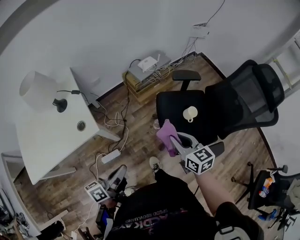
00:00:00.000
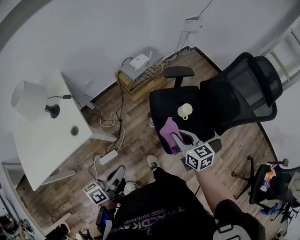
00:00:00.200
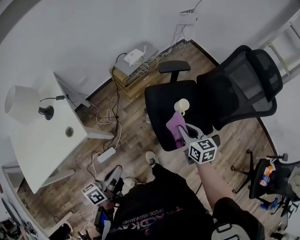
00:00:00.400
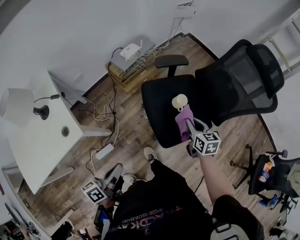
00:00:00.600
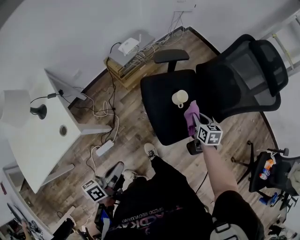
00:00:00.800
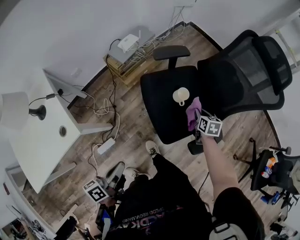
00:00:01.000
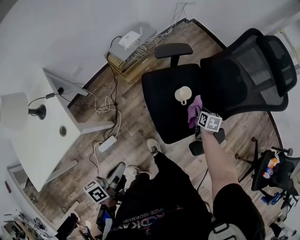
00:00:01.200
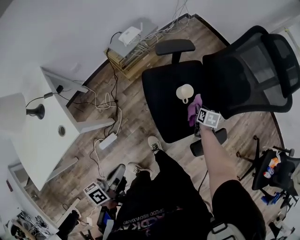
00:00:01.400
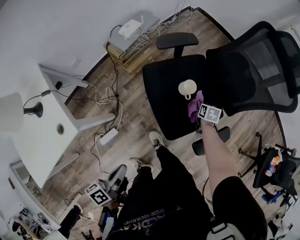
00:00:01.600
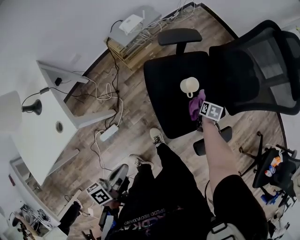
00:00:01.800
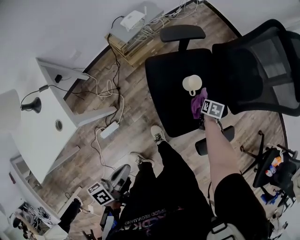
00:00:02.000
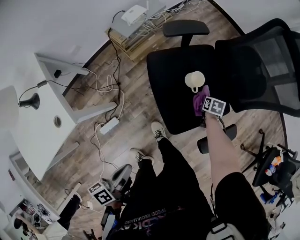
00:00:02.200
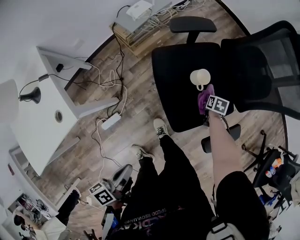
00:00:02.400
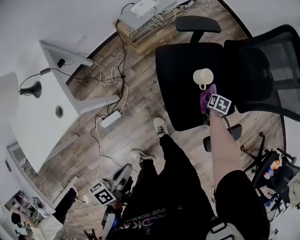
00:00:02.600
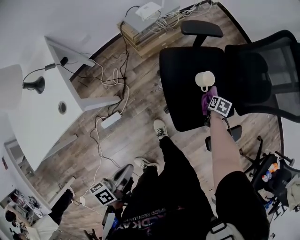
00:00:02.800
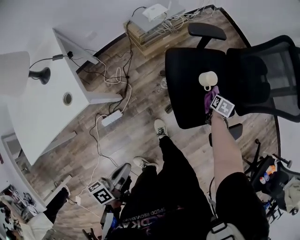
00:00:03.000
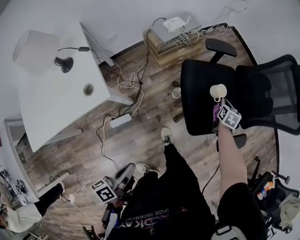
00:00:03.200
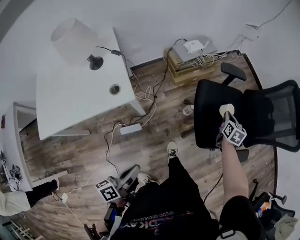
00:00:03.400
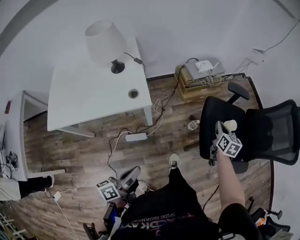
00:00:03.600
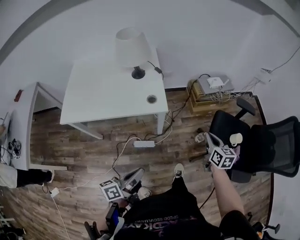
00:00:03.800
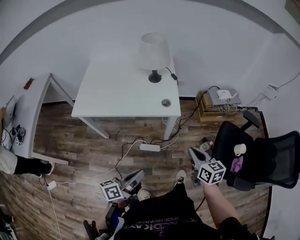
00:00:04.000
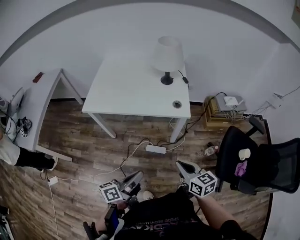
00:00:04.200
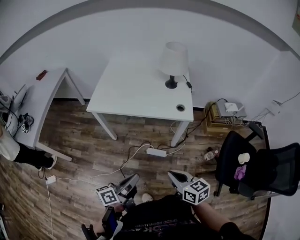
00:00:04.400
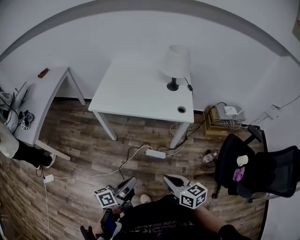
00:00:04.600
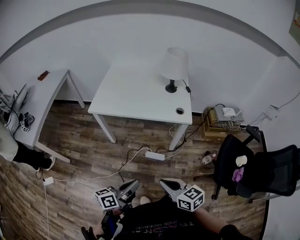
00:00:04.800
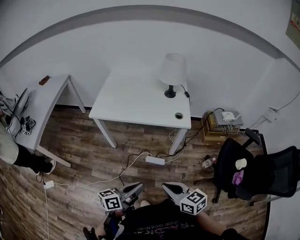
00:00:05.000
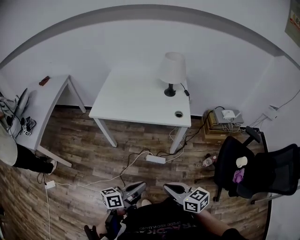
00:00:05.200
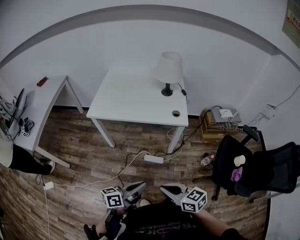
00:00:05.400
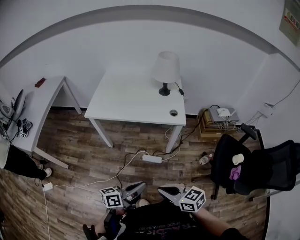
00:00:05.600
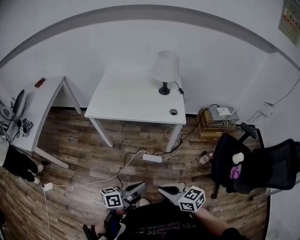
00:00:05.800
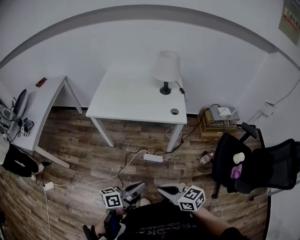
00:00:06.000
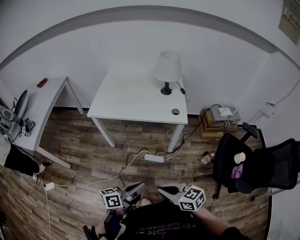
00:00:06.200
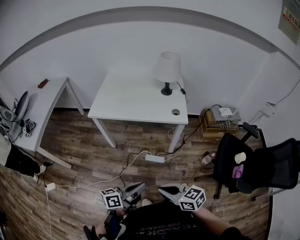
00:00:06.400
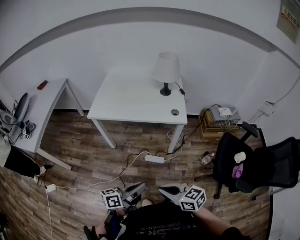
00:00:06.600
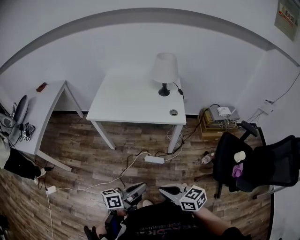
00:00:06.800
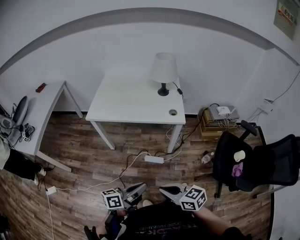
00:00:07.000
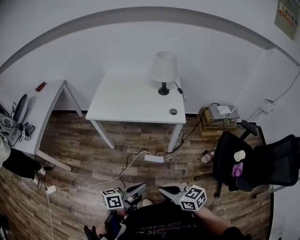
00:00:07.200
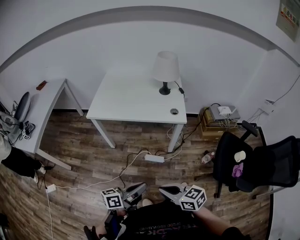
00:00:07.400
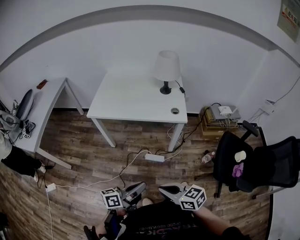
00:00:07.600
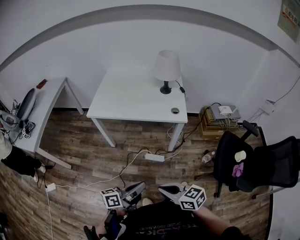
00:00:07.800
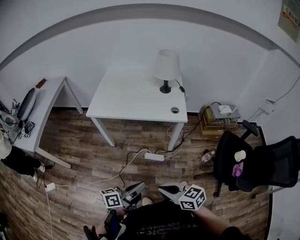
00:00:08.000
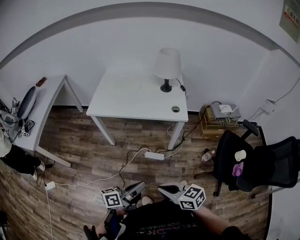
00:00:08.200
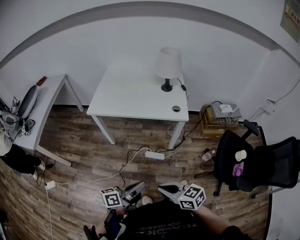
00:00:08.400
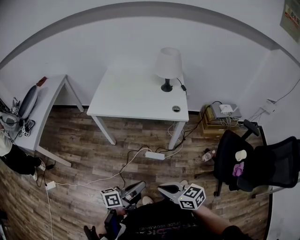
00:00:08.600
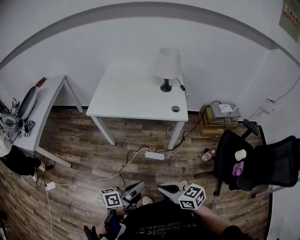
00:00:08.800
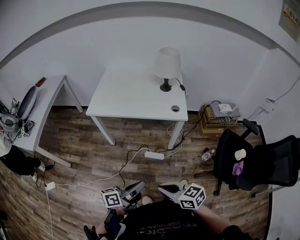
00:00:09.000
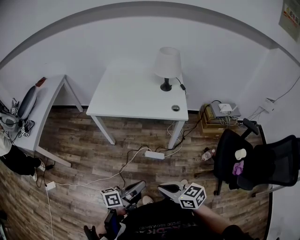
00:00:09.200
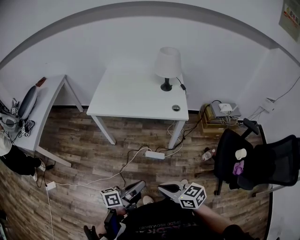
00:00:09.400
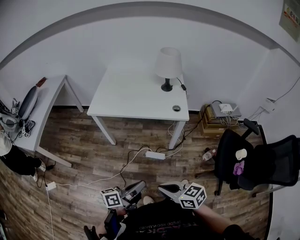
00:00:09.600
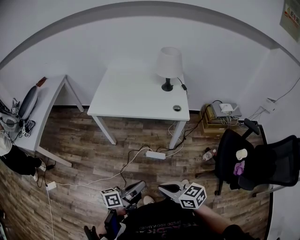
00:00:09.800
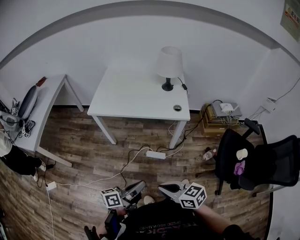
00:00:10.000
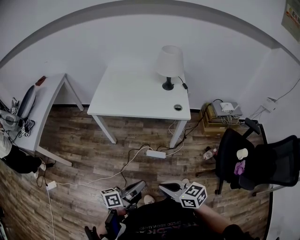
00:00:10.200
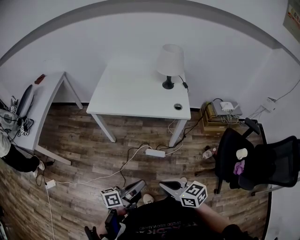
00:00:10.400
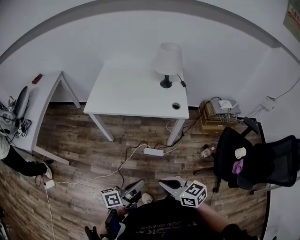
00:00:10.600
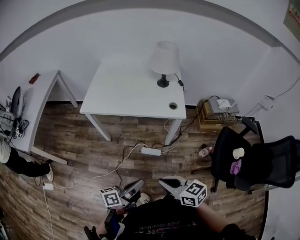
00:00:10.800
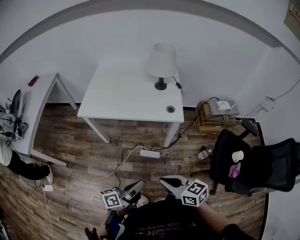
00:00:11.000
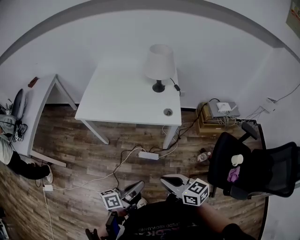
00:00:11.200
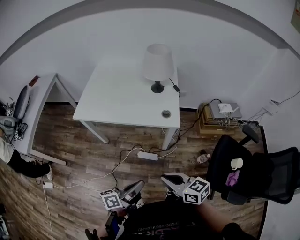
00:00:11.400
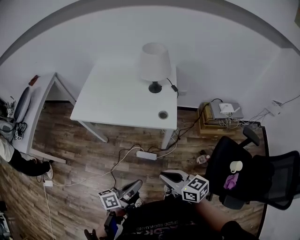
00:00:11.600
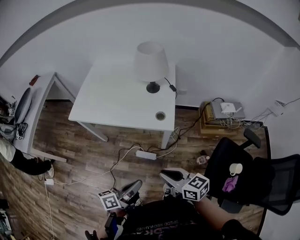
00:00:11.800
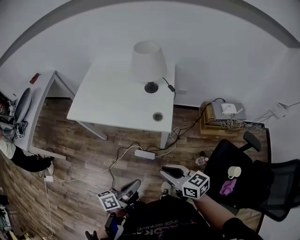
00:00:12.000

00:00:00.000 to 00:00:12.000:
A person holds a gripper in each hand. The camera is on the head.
00:00:00.000 to 00:00:01.600: The left gripper goes approximately 10 cm to the right and downward. Meanwhile the right gripper moves downward, to the right and forward, some 40 cm, and tips its fingers downward by approximately 40 degrees.
00:00:01.600 to 00:00:03.000: The left gripper is displaced backward by some 10 cm, while the right gripper goes downward and returns, roughly 5 cm each way.
00:00:03.000 to 00:00:04.400: The left gripper ends up about 35 cm from where it was, and rotates approximately 40 degrees. The right gripper shifts by some 80 cm, tilts its fingers about 30 degrees upward, and closes.
00:00:04.400 to 00:00:06.000: The left gripper travels backward by about 5 cm. Meanwhile the right gripper shifts some 10 cm backward.
00:00:06.000 to 00:00:07.600: The two grippers keep their place.
00:00:07.600 to 00:00:09.000: Both grippers stay put.
00:00:09.000 to 00:00:10.400: The grippers stay close to where they were, moving slightly.
00:00:10.400 to 00:00:12.000: The grippers both shift to the right and forward by about 25 cm.

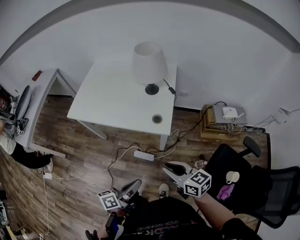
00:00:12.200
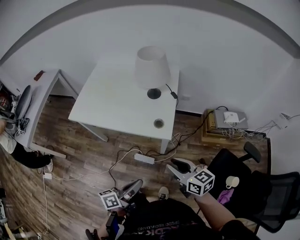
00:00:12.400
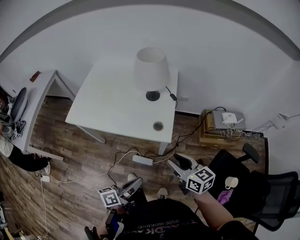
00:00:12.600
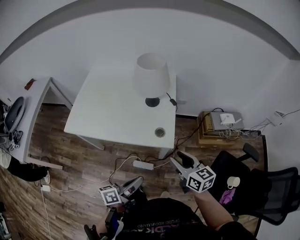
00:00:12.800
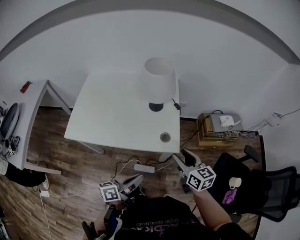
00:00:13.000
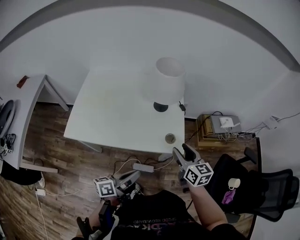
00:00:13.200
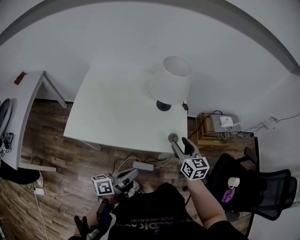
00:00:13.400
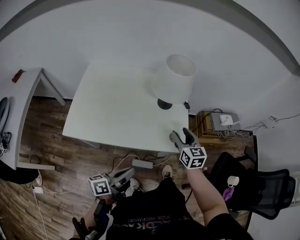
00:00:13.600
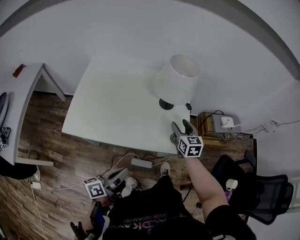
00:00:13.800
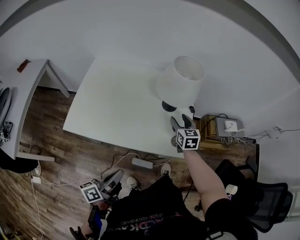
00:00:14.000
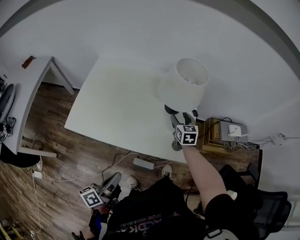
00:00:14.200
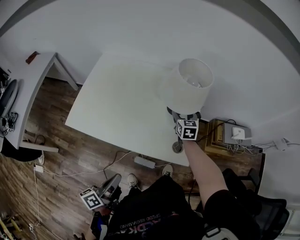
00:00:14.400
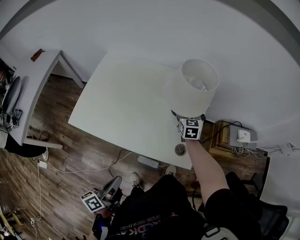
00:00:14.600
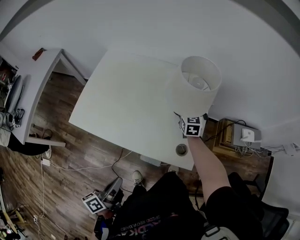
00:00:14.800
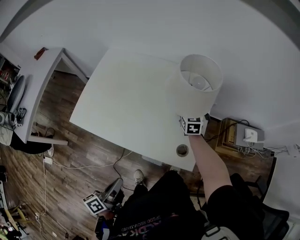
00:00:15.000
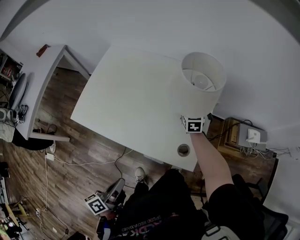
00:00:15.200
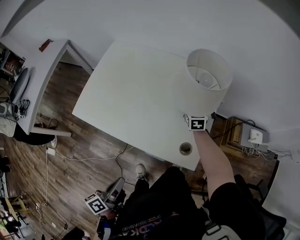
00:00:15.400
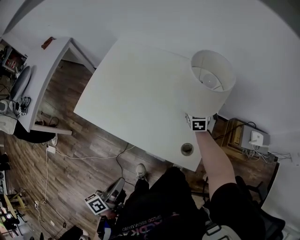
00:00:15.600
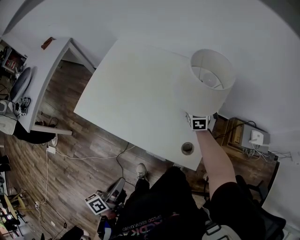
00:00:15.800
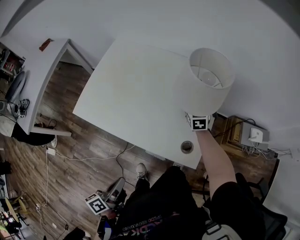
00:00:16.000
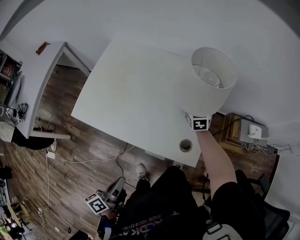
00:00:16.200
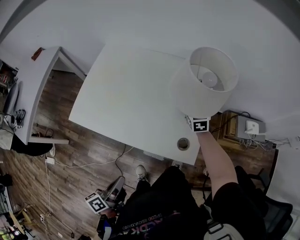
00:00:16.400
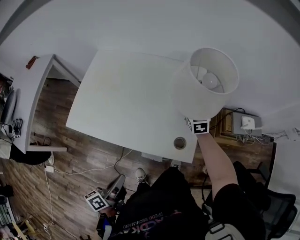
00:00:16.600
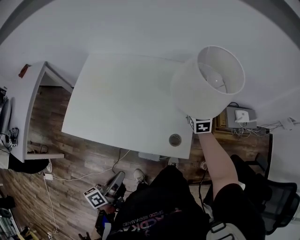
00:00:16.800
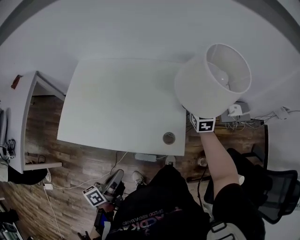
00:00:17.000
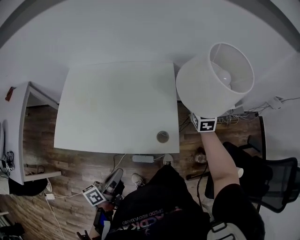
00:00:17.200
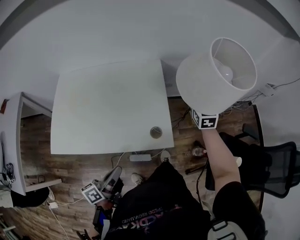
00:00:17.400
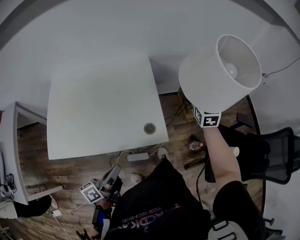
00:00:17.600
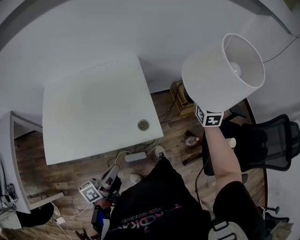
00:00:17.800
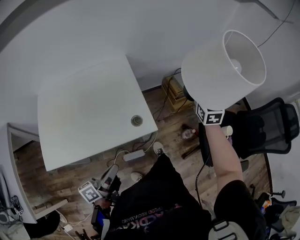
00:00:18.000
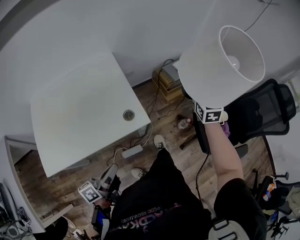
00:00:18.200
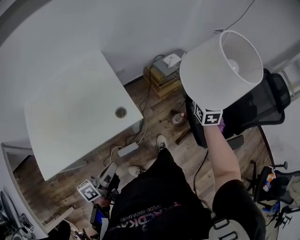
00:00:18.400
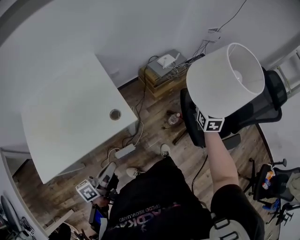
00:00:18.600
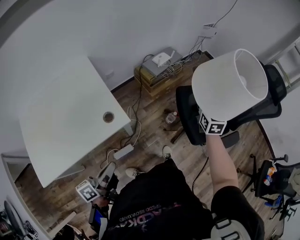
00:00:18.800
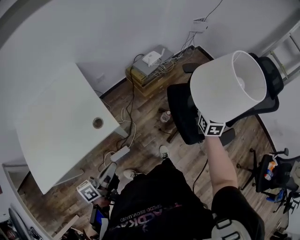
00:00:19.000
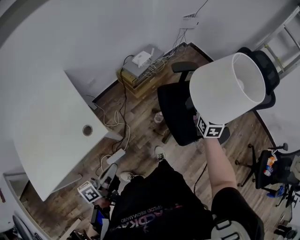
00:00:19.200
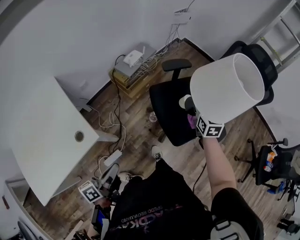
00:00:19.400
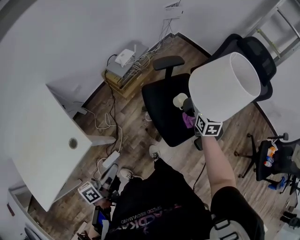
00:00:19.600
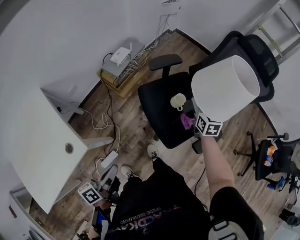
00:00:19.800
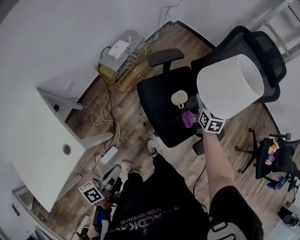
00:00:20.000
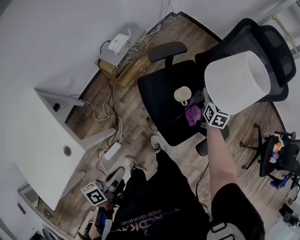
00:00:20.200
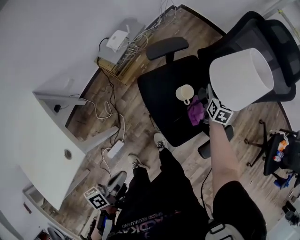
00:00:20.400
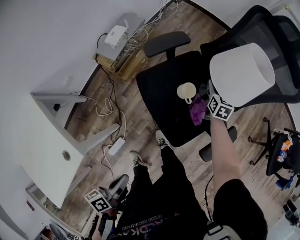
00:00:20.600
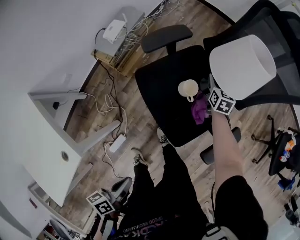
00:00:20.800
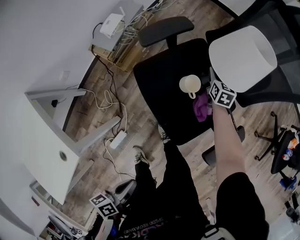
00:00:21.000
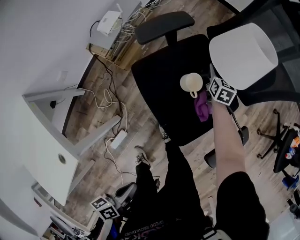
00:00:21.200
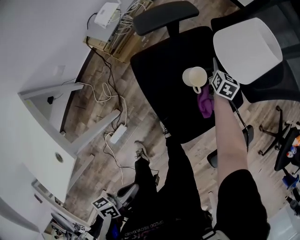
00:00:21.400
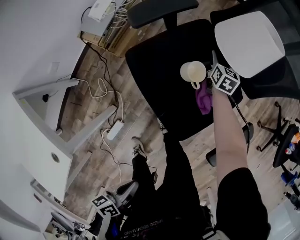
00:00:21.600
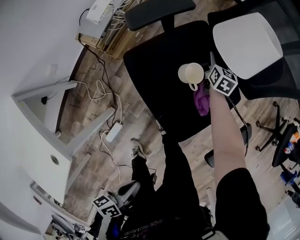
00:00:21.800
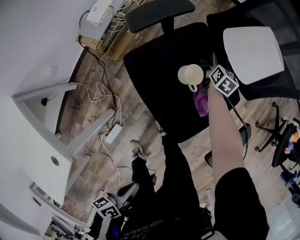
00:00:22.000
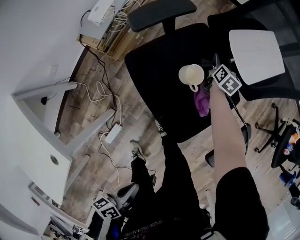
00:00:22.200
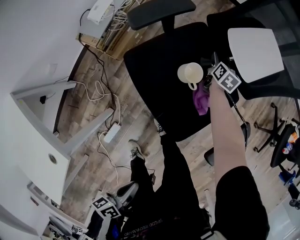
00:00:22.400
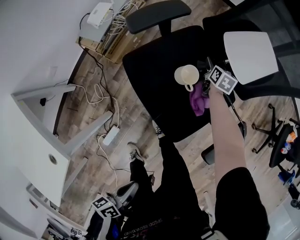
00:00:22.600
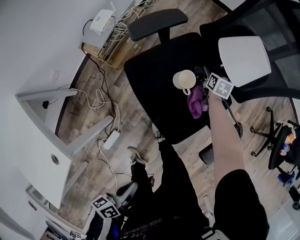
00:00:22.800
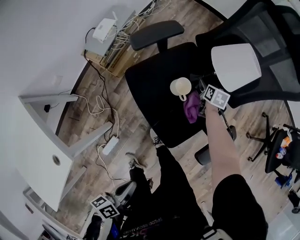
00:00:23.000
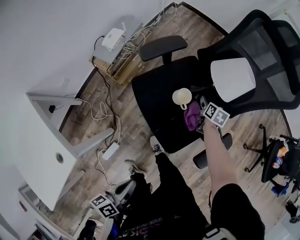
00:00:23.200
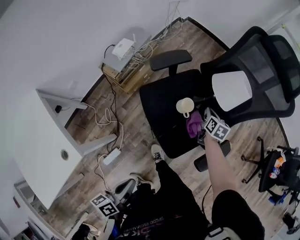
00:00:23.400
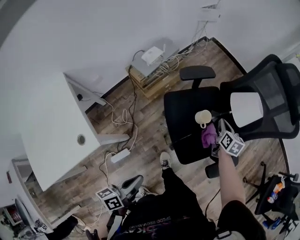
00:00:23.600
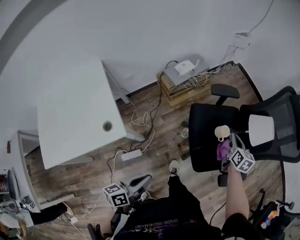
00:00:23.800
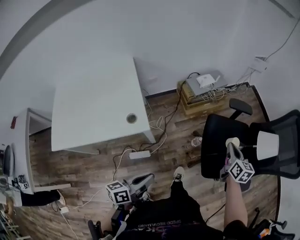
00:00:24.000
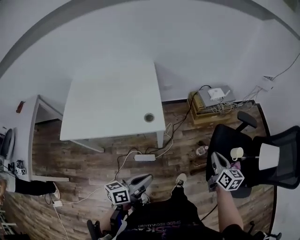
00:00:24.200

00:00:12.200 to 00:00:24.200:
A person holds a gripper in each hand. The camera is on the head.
00:00:12.200 to 00:00:13.800: The left gripper changes place by roughly 25 cm, while the right gripper changes place by roughly 35 cm, turns by some 40 degrees, and opens.
00:00:13.800 to 00:00:15.200: The left gripper swivels approximately 30 degrees; the right gripper moves forward, approximately 20 cm.
00:00:15.200 to 00:00:16.600: The right gripper is displaced upward by some 5 cm, and closes up.
00:00:16.600 to 00:00:18.200: The left gripper changes place by some 5 cm, and rotates approximately 40 degrees; the right gripper moves roughly 40 cm, and changes its angle by about 40 degrees.
00:00:18.200 to 00:00:19.800: The left gripper heads to the right and forward, covering approximately 35 cm, and changes its angle by roughly 20 degrees. The right gripper is displaced to the right by about 50 cm, and changes its angle by some 40 degrees.
00:00:19.800 to 00:00:21.200: The right gripper moves downward and forward, about 30 cm, while the left gripper is displaced to the right and downward by about 15 cm, and changes its angle by roughly 30 degrees.
00:00:22.600 to 00:00:24.200: The right gripper ends up approximately 60 cm from where it was, changes its angle by approximately 60 degrees, and closes up. Meanwhile the left gripper changes place by roughly 25 cm, and rotates about 50 degrees.
